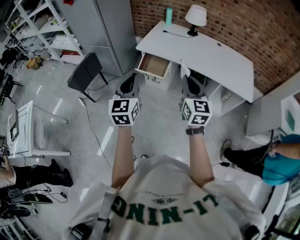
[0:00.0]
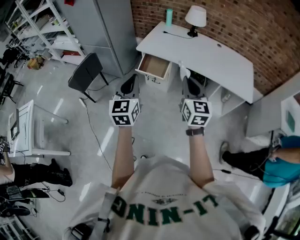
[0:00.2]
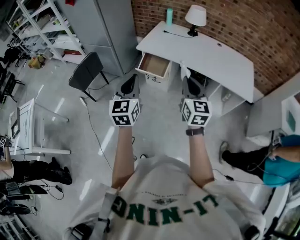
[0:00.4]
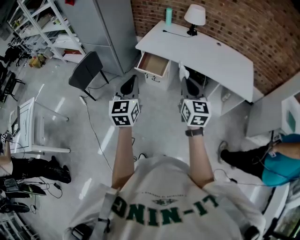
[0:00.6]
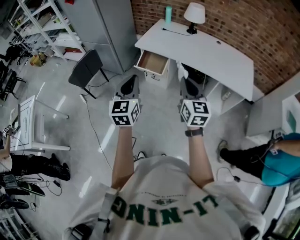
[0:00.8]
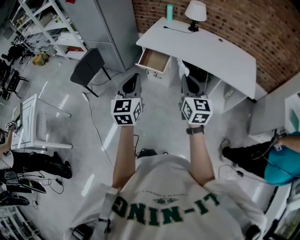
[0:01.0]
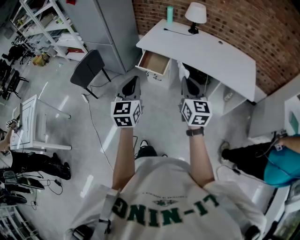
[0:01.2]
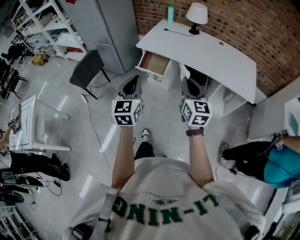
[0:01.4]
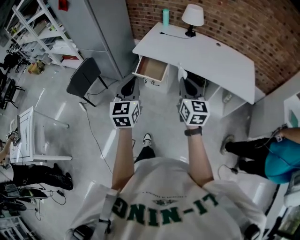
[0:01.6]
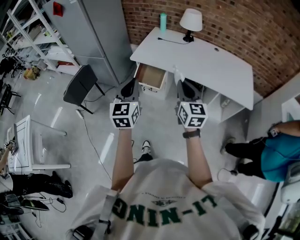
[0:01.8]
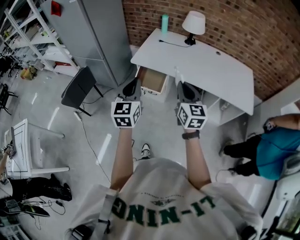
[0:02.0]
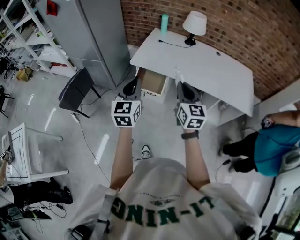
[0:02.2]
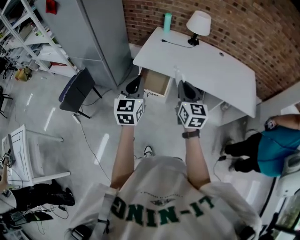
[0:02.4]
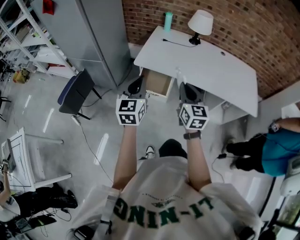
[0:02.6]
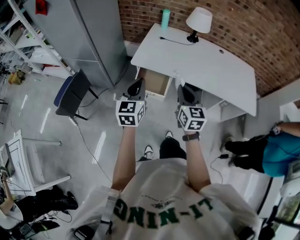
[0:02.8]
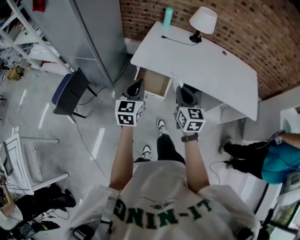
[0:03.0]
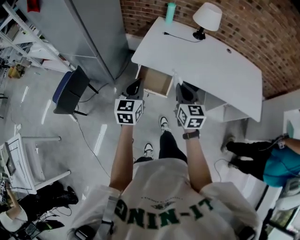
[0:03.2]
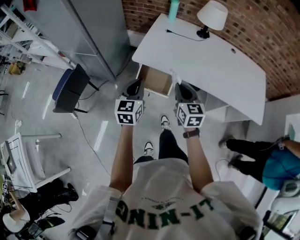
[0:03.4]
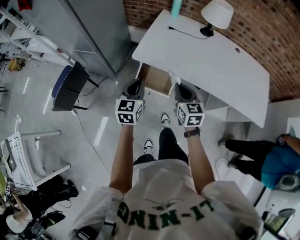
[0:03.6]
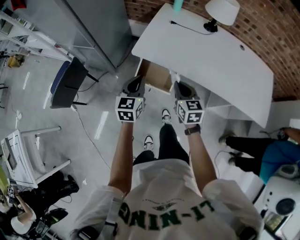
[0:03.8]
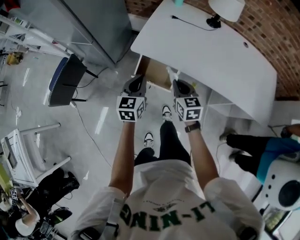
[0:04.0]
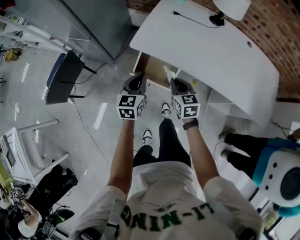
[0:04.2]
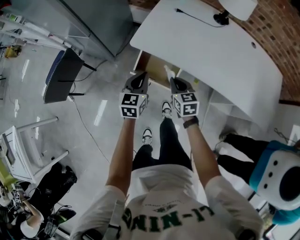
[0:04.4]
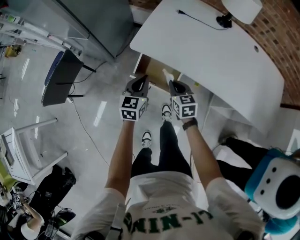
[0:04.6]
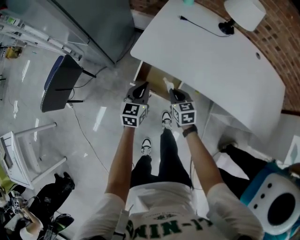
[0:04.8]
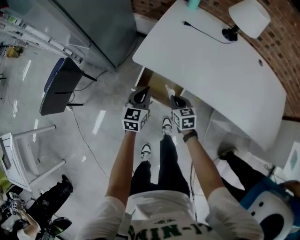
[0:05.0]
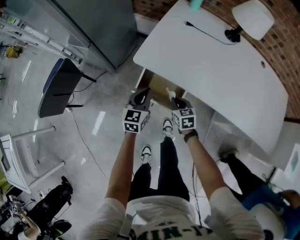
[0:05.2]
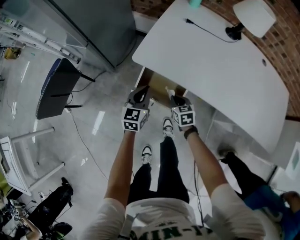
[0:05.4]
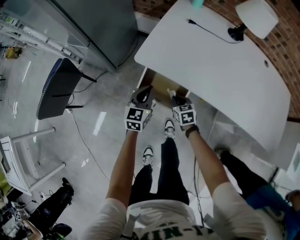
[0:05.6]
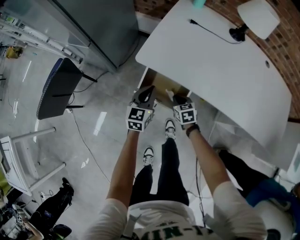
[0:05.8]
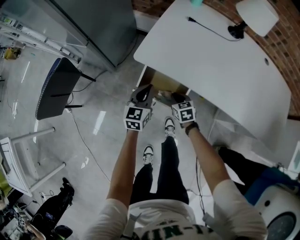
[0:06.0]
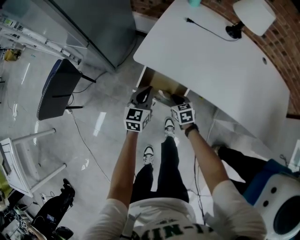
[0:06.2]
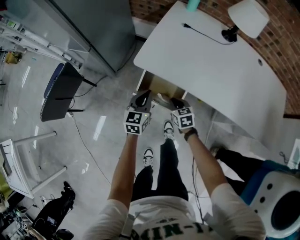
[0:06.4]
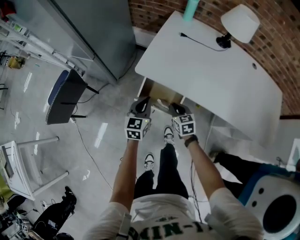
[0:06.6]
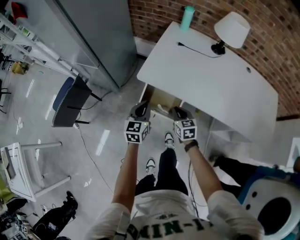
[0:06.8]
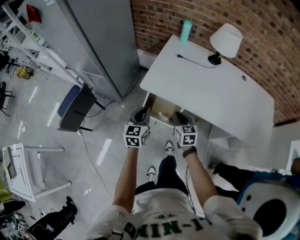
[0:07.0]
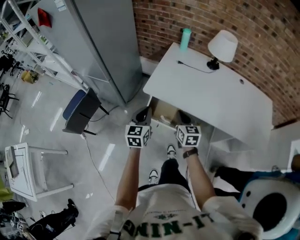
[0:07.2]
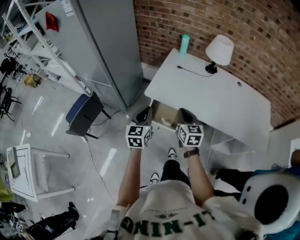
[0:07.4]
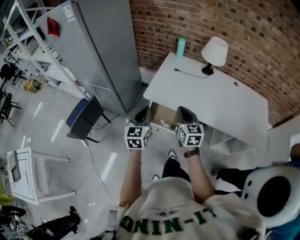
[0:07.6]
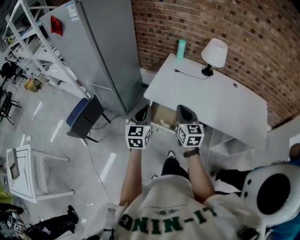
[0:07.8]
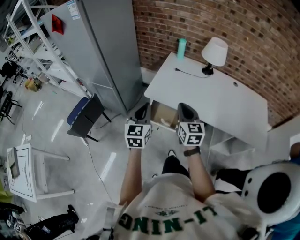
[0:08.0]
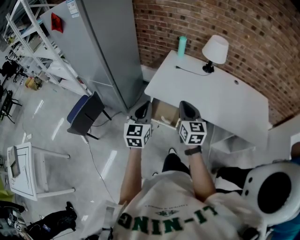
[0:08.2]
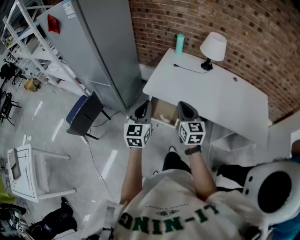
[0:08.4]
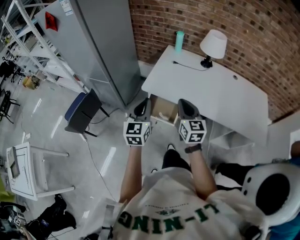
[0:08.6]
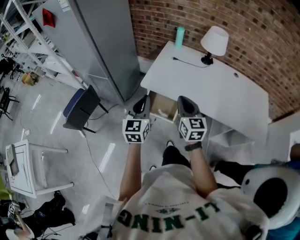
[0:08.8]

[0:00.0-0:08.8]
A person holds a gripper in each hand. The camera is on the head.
0.0 to 1.4 s: The left gripper shifts some 5 cm to the right, while the right gripper changes place by some 5 cm.
1.4 to 3.0 s: The left gripper goes some 30 cm forward. The right gripper moves forward and to the left, approximately 30 cm.
3.0 to 4.4 s: The two grippers go some 25 cm downward and forward. The right gripper rotates about 30 degrees.
4.4 to 5.8 s: The right gripper goes some 20 cm downward; the left gripper heads downward and forward, covering approximately 15 cm.
5.8 to 7.4 s: The right gripper travels upward by roughly 35 cm, and tilts its fingers some 30 degrees upward; the left gripper goes about 30 cm upward and backward.
7.4 to 8.8 s: The two grippers go about 5 cm upward.

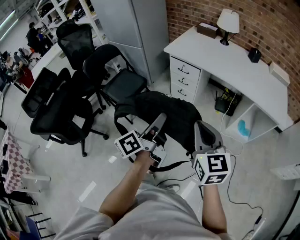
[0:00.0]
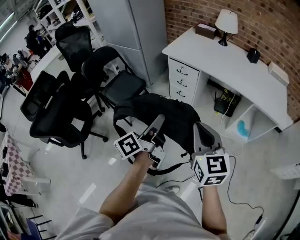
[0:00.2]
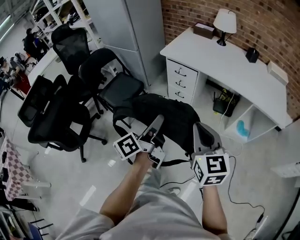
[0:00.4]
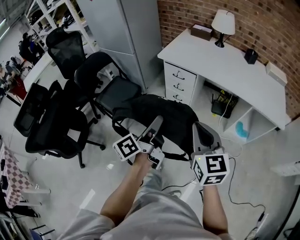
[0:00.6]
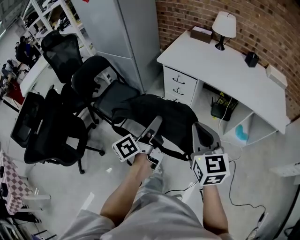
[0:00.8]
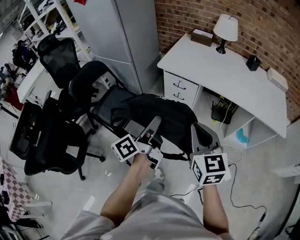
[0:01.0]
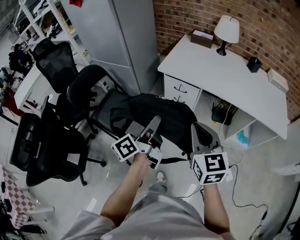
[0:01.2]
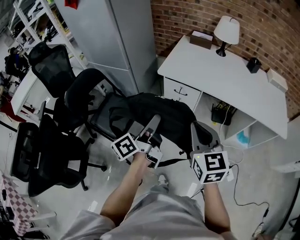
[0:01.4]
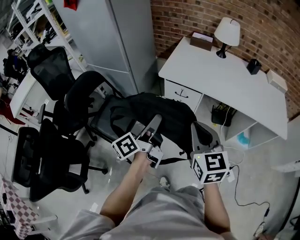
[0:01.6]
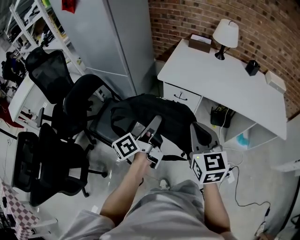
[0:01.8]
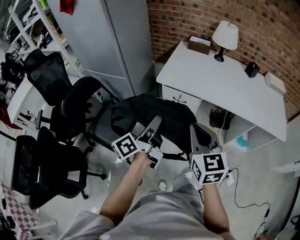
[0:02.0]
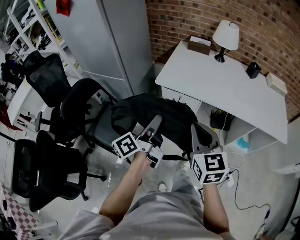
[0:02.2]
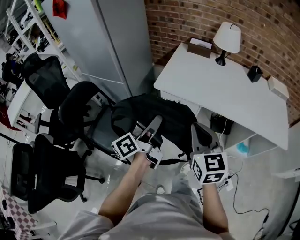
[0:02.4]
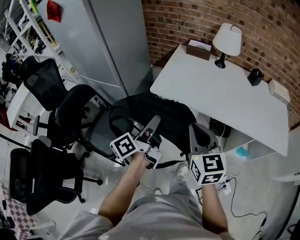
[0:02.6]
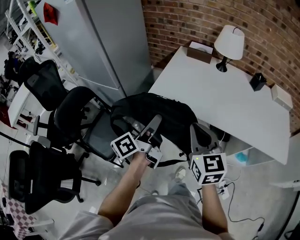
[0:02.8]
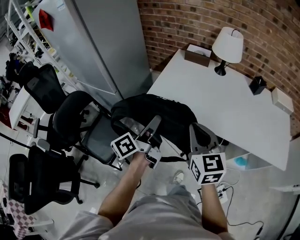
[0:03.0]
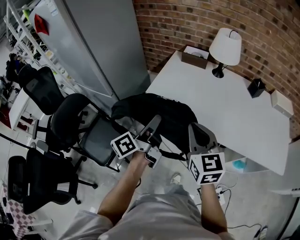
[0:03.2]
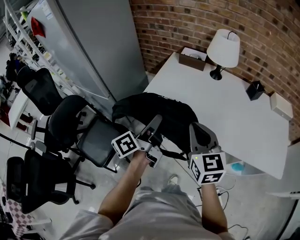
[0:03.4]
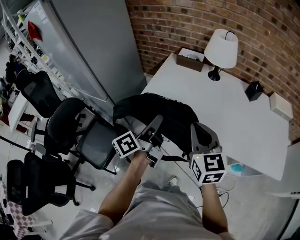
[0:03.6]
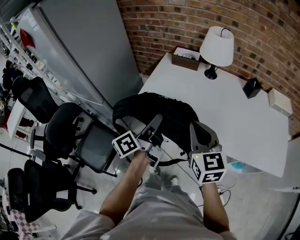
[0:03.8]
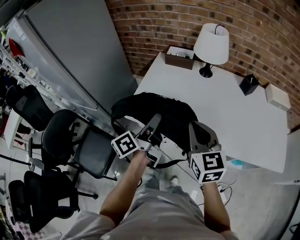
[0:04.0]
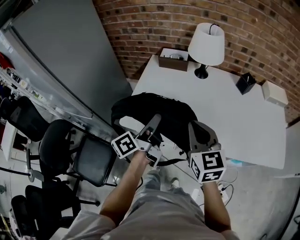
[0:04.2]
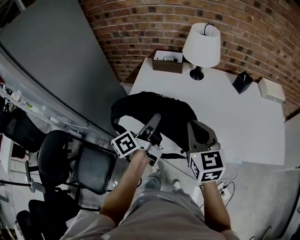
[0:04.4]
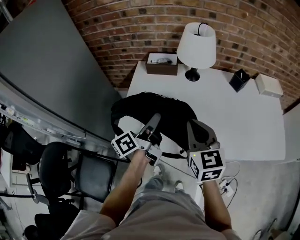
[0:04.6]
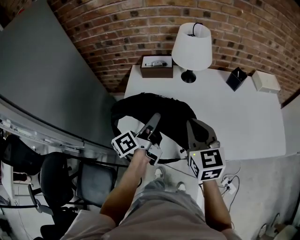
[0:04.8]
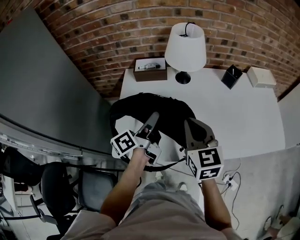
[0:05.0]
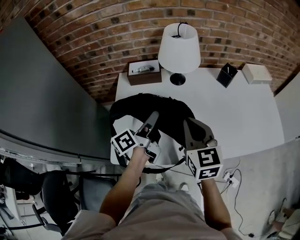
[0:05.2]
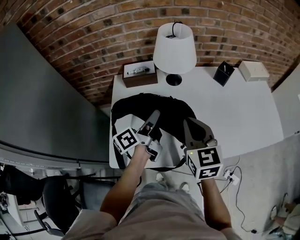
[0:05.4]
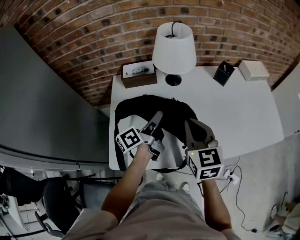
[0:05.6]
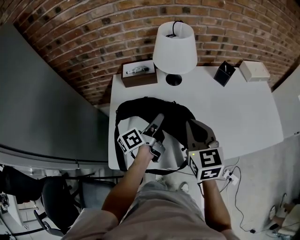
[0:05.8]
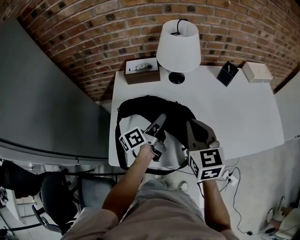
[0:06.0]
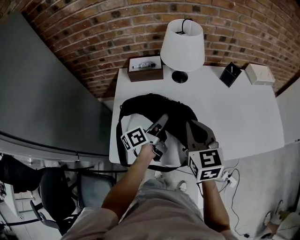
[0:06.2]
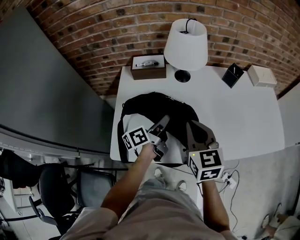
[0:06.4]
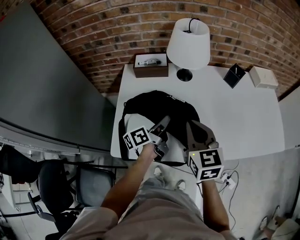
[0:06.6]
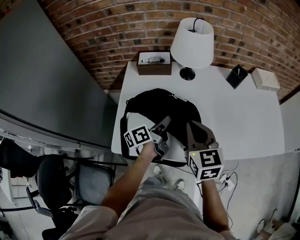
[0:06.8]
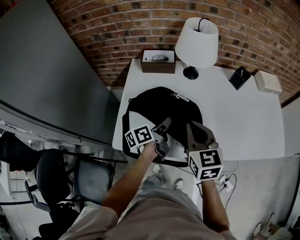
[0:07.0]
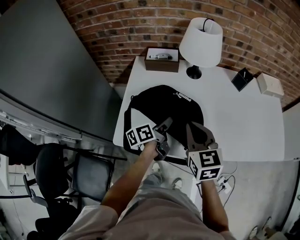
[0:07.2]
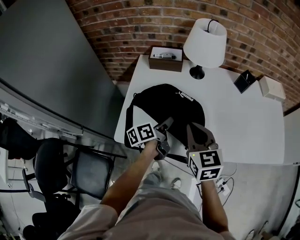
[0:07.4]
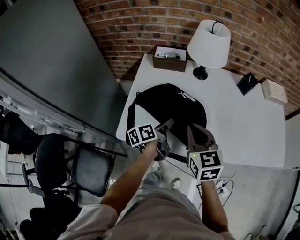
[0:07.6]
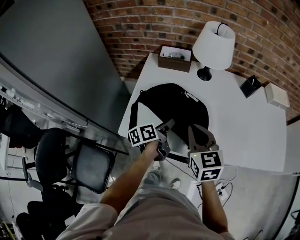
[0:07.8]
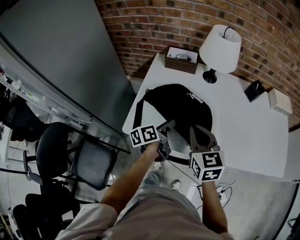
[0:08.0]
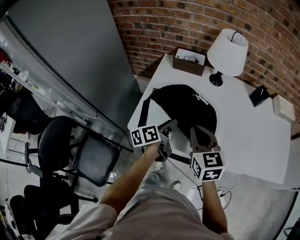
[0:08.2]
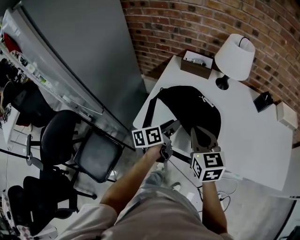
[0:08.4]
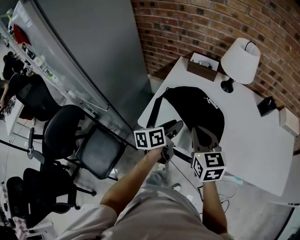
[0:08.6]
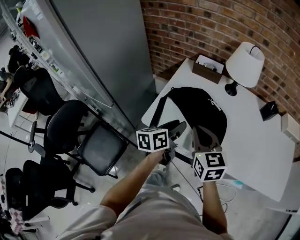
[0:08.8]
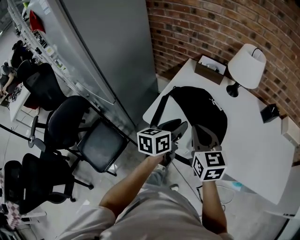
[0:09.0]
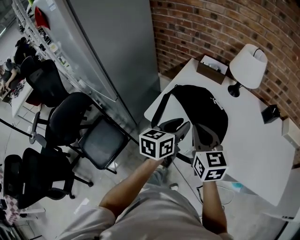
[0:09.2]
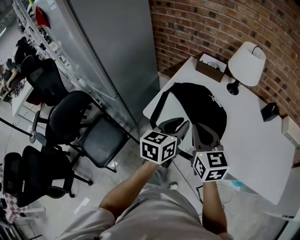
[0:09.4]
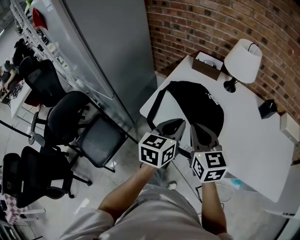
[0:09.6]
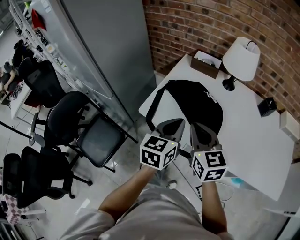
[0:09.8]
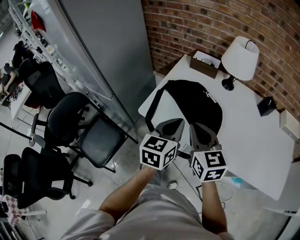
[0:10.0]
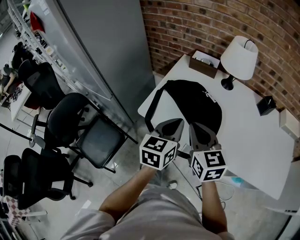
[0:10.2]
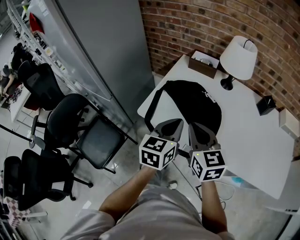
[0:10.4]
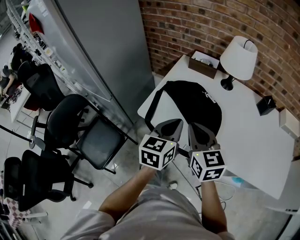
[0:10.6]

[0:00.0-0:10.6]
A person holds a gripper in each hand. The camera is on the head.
0.0 to 1.6 s: Both grippers move forward and to the left, some 30 cm.
1.6 to 3.0 s: The two grippers go about 20 cm forward.
3.0 to 4.6 s: Both grippers travel together forward, roughly 25 cm.
4.6 to 6.0 s: The right gripper travels forward by approximately 10 cm. Meanwhile the left gripper moves forward and downward, roughly 15 cm.
6.0 to 7.6 s: The left gripper is displaced backward and downward by roughly 10 cm, while the right gripper goes about 5 cm backward.
7.6 to 9.0 s: The left gripper shifts roughly 15 cm upward, backward and to the left, and changes its angle by some 30 degrees. The right gripper travels to the left and backward by approximately 10 cm.
9.0 to 10.6 s: The left gripper ends up roughly 5 cm from where it was, changes its angle by some 20 degrees, and closes.

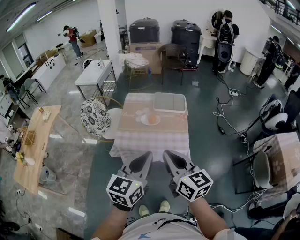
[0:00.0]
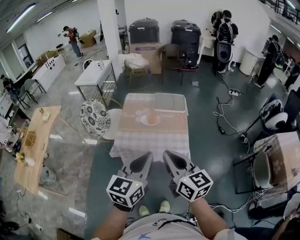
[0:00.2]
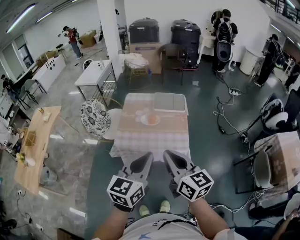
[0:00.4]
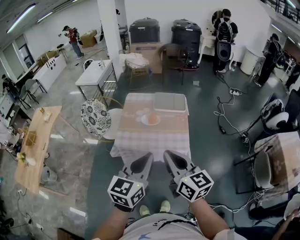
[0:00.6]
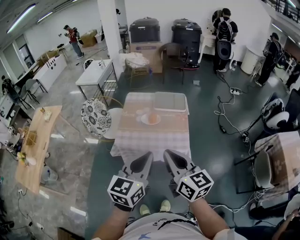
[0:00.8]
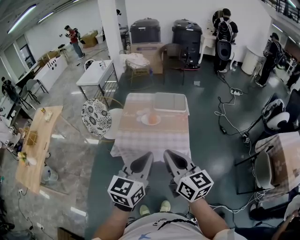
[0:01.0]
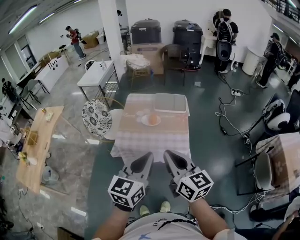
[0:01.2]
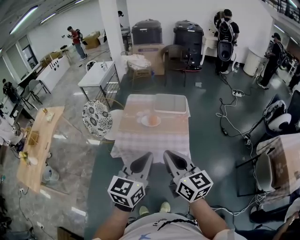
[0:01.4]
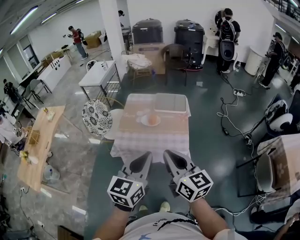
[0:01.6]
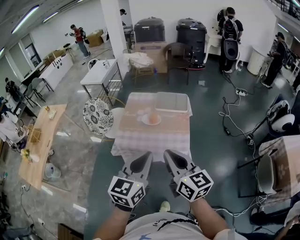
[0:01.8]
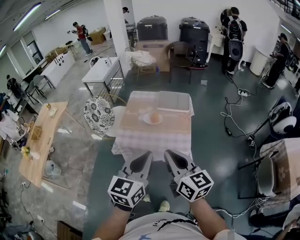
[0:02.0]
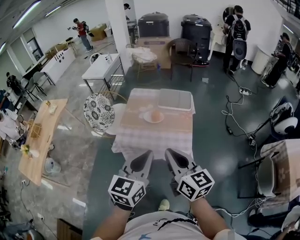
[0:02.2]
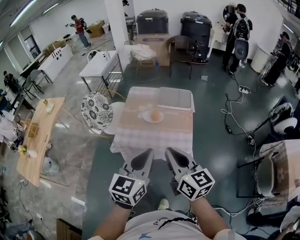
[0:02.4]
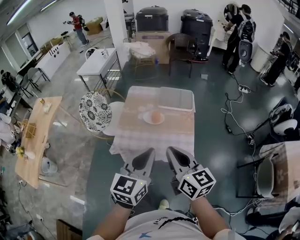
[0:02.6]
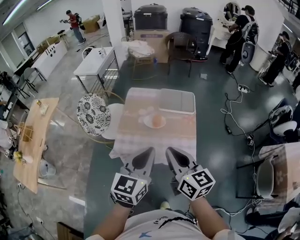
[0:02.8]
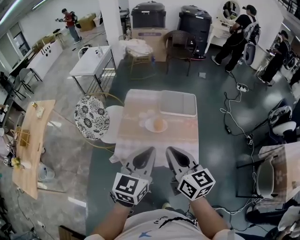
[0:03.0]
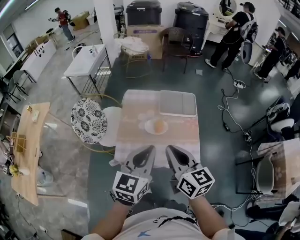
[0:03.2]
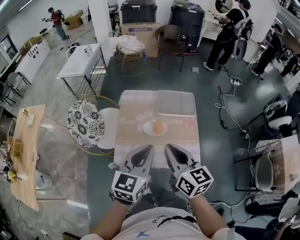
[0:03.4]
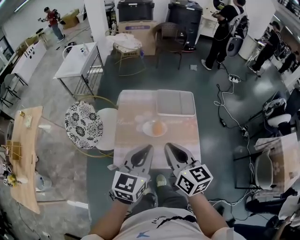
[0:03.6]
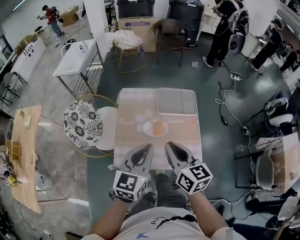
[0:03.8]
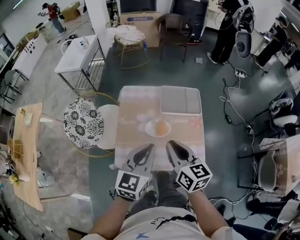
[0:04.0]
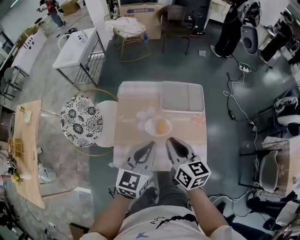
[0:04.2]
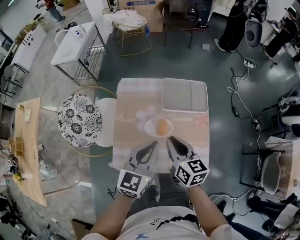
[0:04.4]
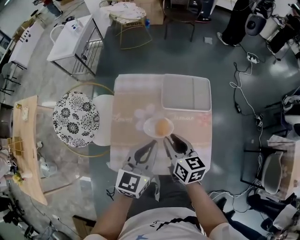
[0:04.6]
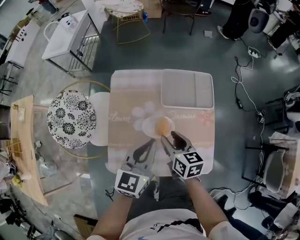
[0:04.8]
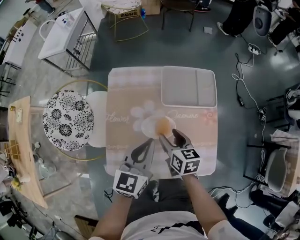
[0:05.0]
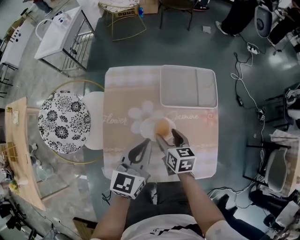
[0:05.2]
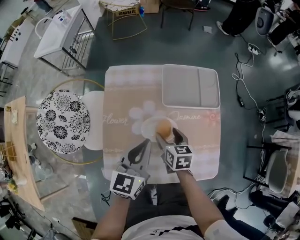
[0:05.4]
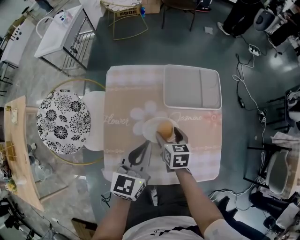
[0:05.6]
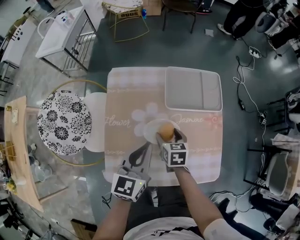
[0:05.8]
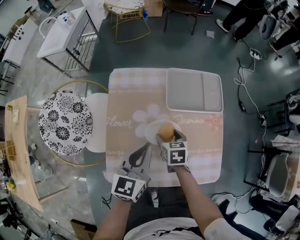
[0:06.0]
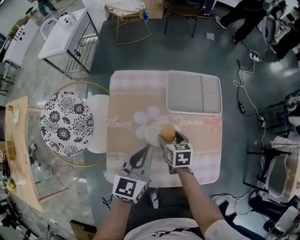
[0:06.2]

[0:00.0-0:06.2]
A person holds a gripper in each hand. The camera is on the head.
0.0 to 1.6 s: The grippers make only small movements.
1.6 to 3.2 s: The grippers both shift forward by roughly 20 cm.
3.2 to 4.6 s: The left gripper shifts roughly 20 cm forward and downward, while the right gripper heads downward and forward, covering about 25 cm.
4.6 to 6.2 s: The right gripper goes about 20 cm downward, changes its angle by about 20 degrees, and opens its fingers; the left gripper moves downward, roughly 10 cm.
